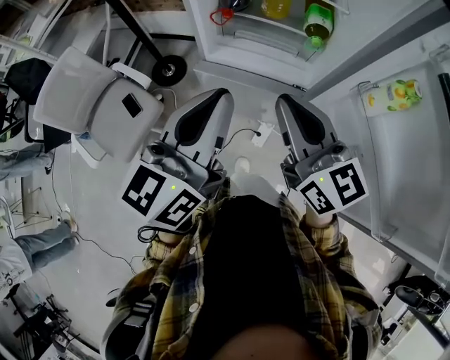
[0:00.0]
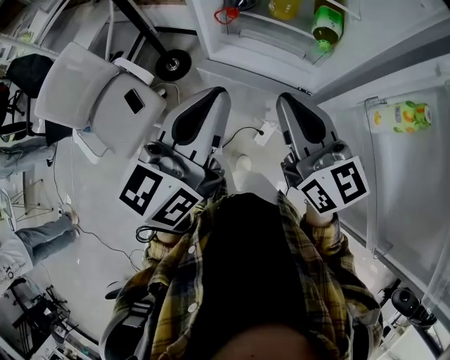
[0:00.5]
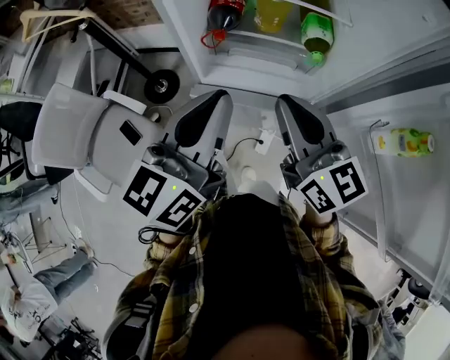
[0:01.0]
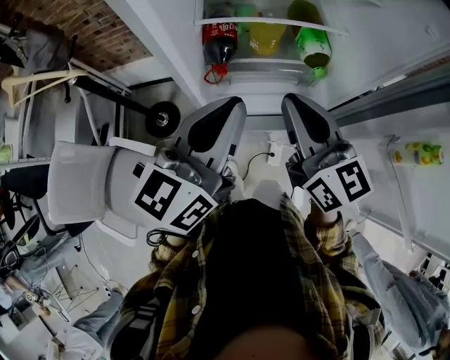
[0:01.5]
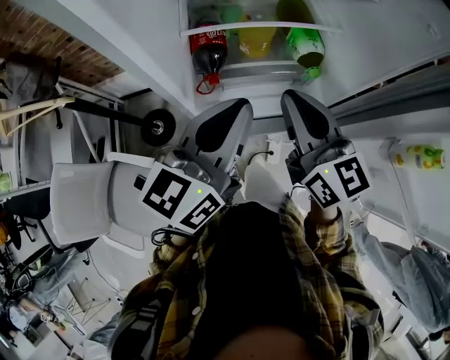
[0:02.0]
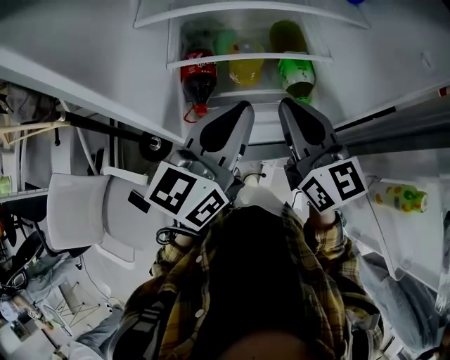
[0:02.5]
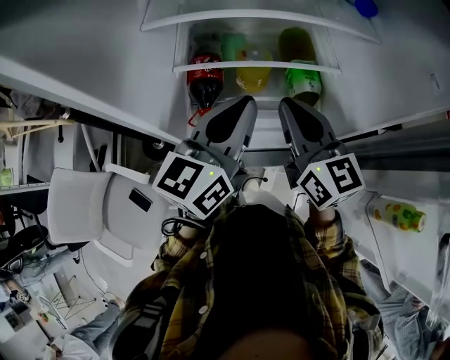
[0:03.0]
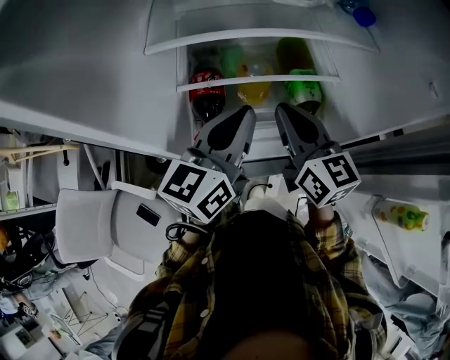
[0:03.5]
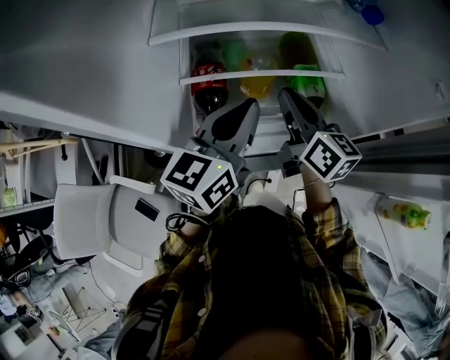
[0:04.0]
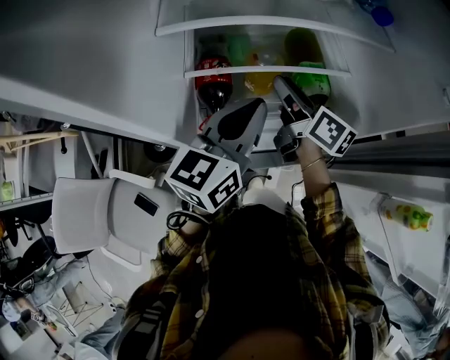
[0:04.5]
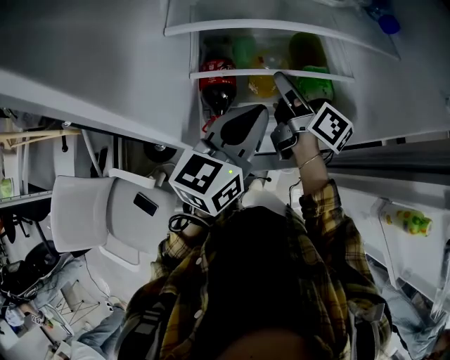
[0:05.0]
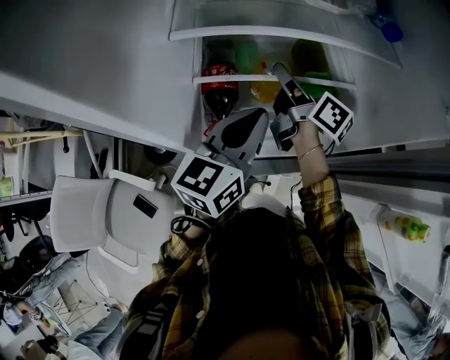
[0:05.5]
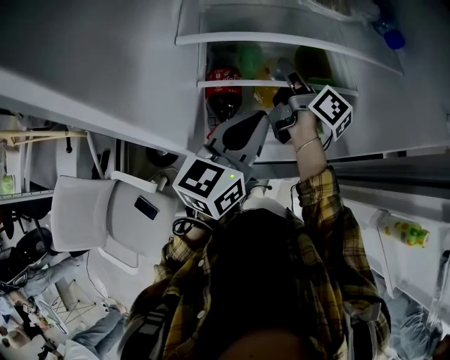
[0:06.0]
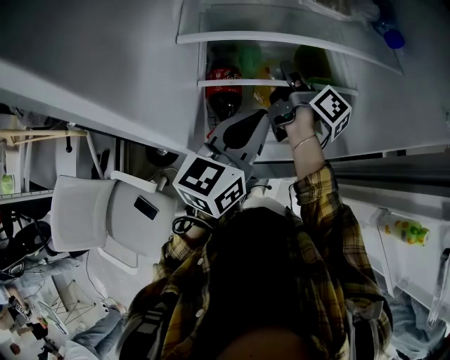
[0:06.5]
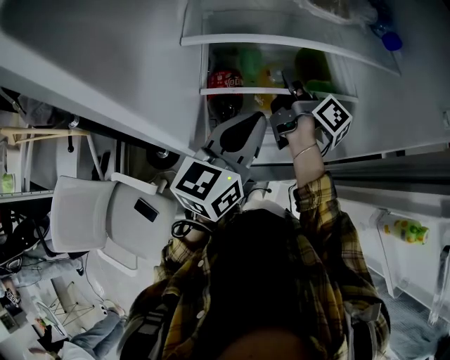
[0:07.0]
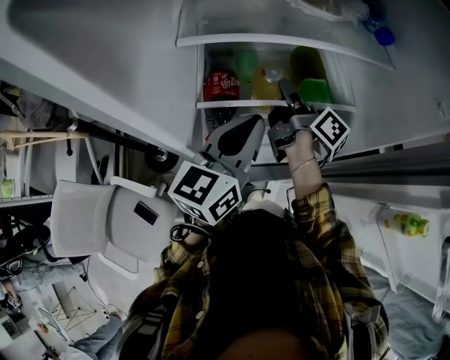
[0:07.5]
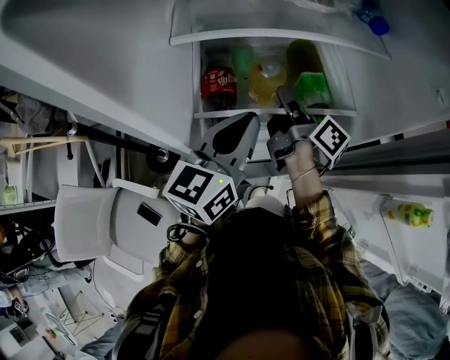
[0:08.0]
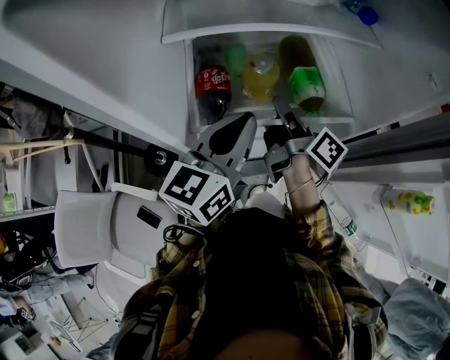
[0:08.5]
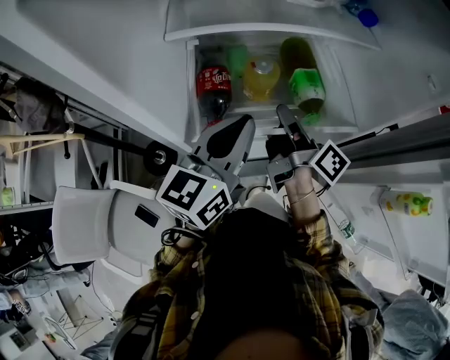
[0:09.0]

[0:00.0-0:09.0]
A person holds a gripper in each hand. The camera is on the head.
0:00.0 to 0:02.0: The right gripper ends up roughly 25 cm from where it was, and rotates approximately 30 degrees; the left gripper moves roughly 25 cm, and changes its angle by about 30 degrees.
0:02.0 to 0:04.5: The right gripper goes about 20 cm forward and downward, rotates some 40 degrees, and opens. Meanwhile the left gripper travels forward by some 10 cm.
0:04.5 to 0:07.0: The right gripper moves forward, approximately 5 cm, rotates roughly 30 degrees, and closes its fingers.
0:07.0 to 0:09.0: The right gripper heads backward, covering some 15 cm.

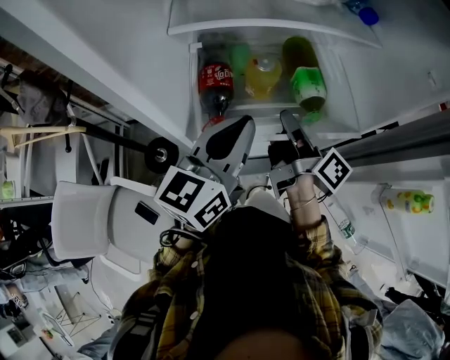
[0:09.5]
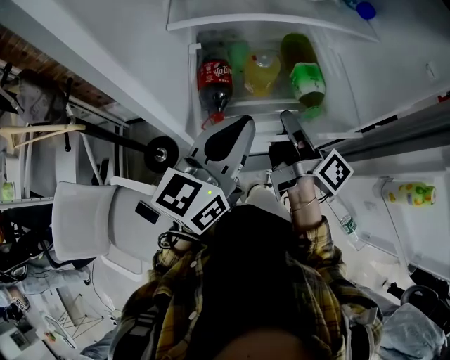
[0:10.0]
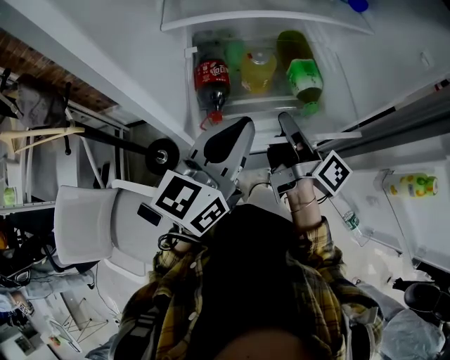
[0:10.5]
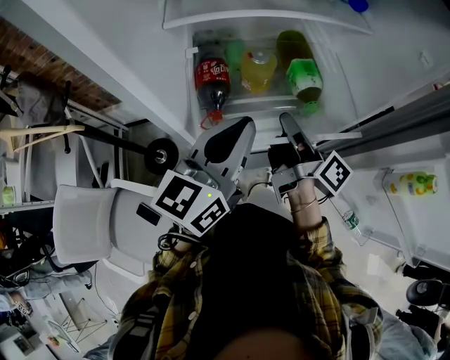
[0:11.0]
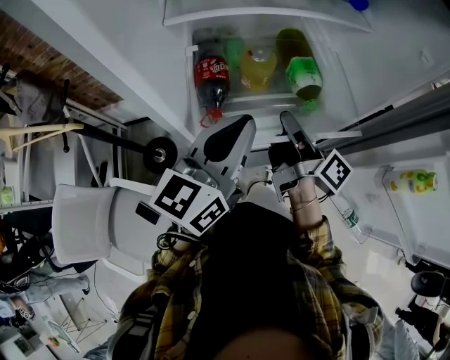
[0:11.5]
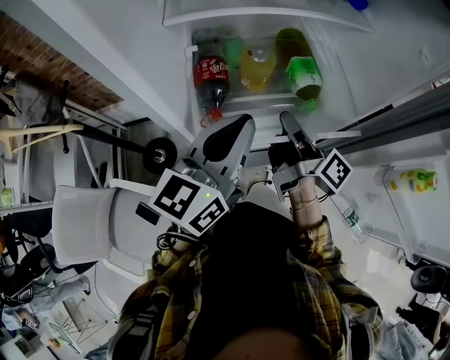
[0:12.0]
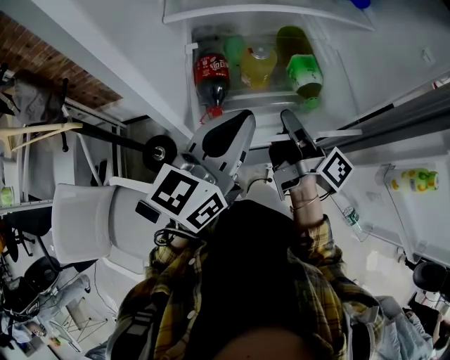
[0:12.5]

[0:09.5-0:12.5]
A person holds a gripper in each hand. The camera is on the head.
0:09.5 to 0:11.0: The grippers move only a little.
0:11.0 to 0:12.5: Both grippers stay put.

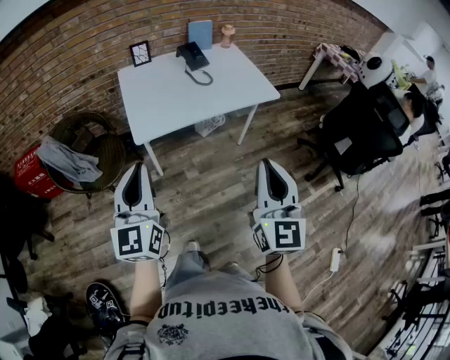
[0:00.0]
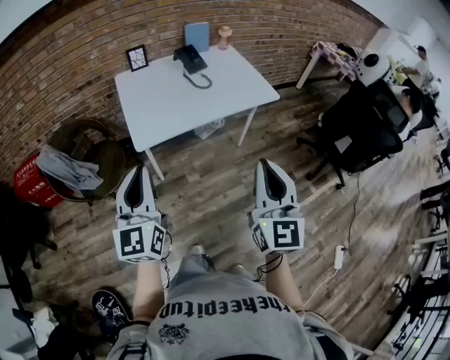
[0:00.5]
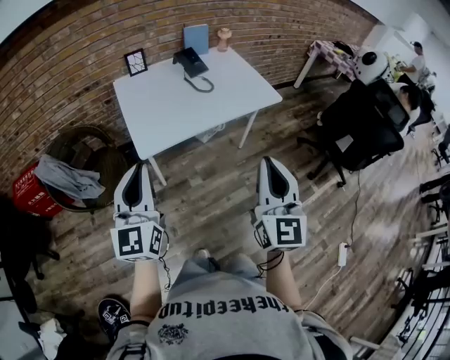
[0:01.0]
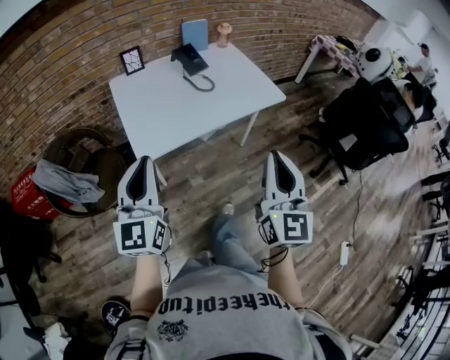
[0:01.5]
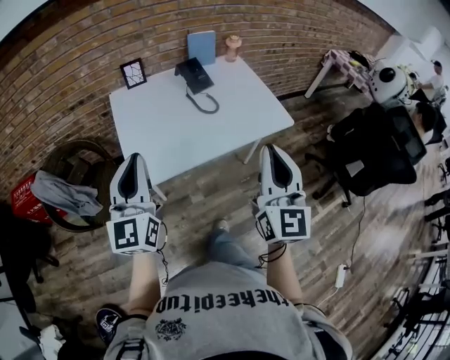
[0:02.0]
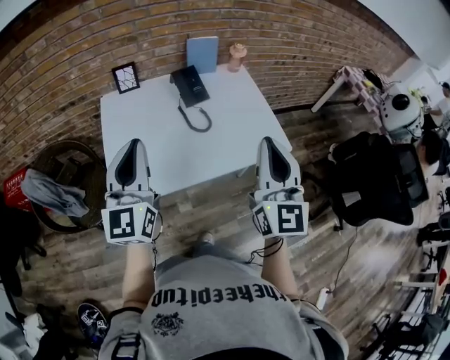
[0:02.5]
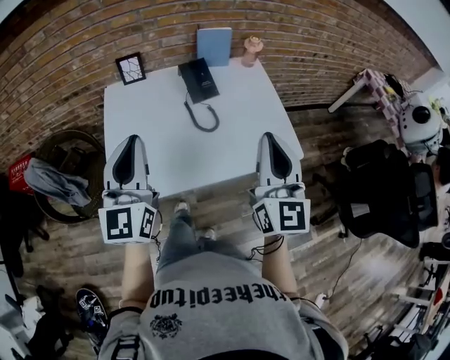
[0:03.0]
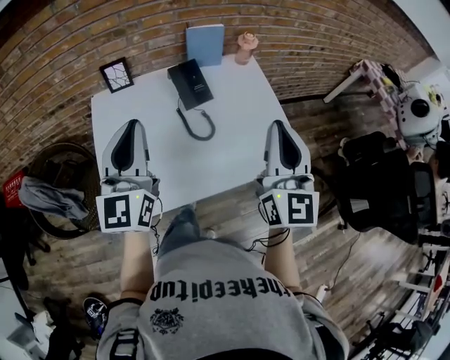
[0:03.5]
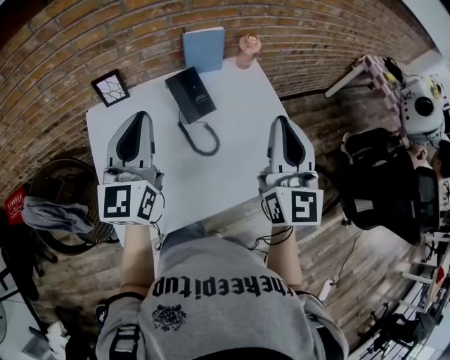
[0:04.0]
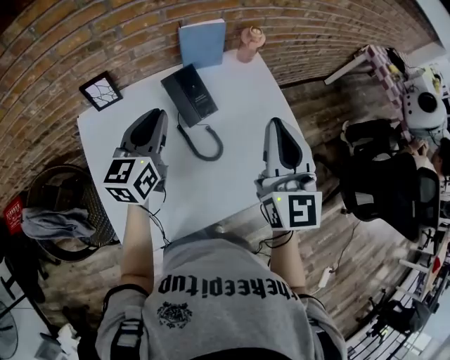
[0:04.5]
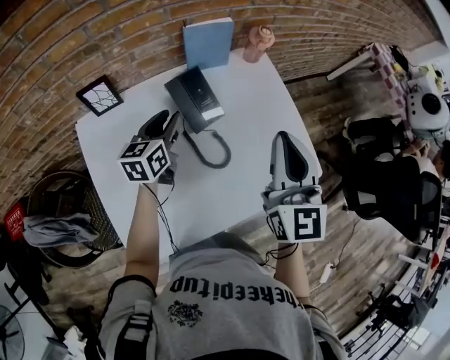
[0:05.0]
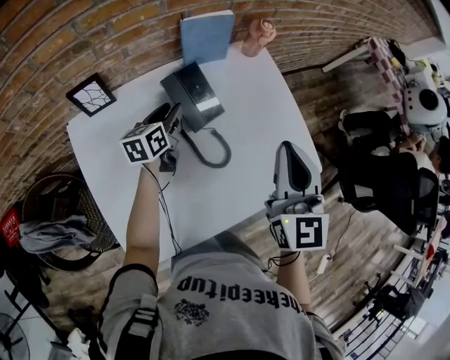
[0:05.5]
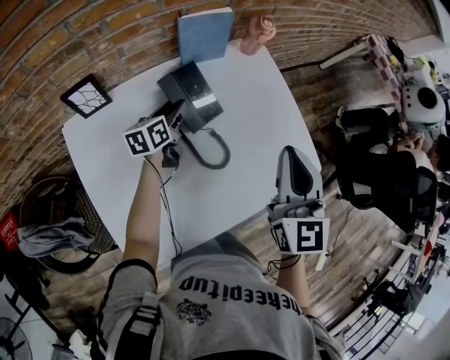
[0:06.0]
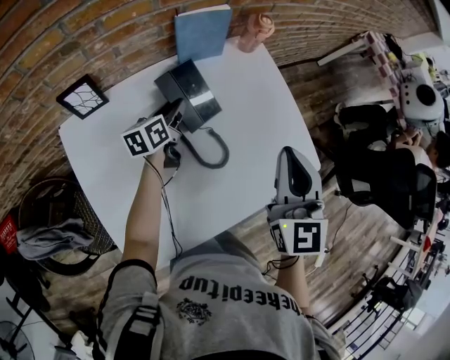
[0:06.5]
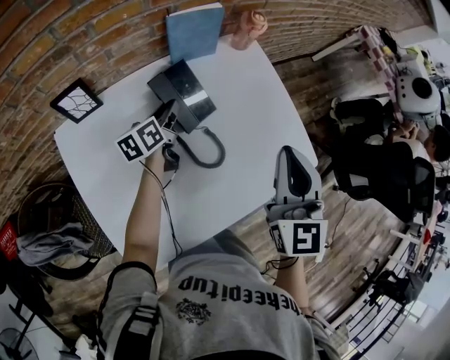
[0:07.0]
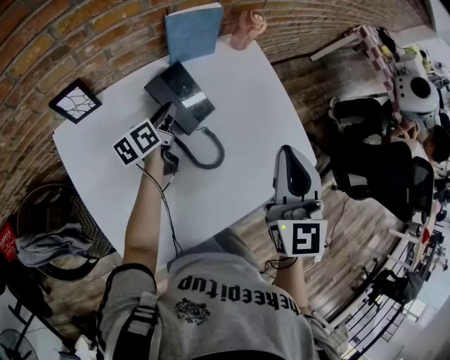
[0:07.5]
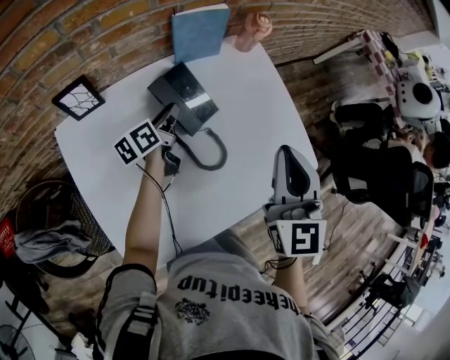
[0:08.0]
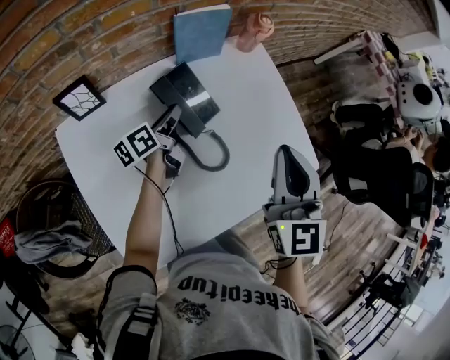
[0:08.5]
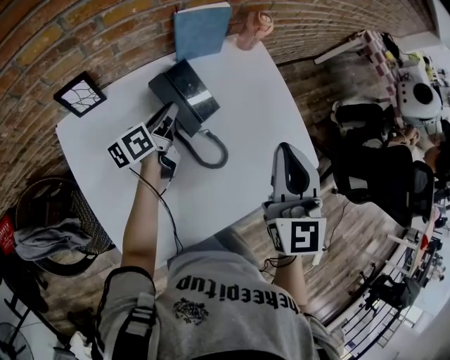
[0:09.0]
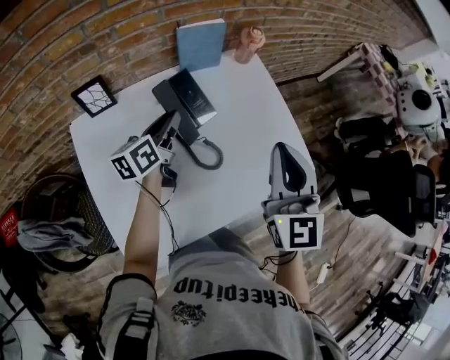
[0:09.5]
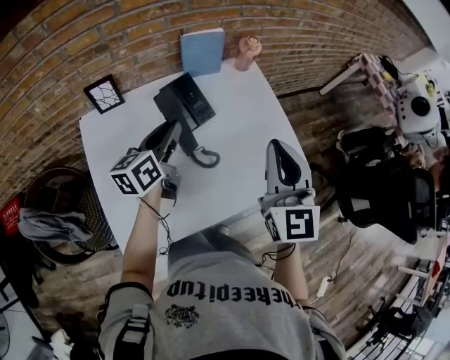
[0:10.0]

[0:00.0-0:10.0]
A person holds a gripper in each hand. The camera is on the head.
0:00.0 to 0:02.0: Both grippers move forward, some 25 cm.
0:02.0 to 0:04.0: Both grippers move forward, approximately 35 cm.
0:04.0 to 0:06.0: The left gripper travels downward and forward by about 40 cm, angles its fingers downward, by approximately 30 degrees, and opens up. The right gripper goes approximately 10 cm downward and forward, and turns by some 20 degrees.
0:06.0 to 0:08.0: The left gripper swivels some 20 degrees.
0:08.0 to 0:10.0: The left gripper goes roughly 20 cm upward and backward, and turns by some 30 degrees. Meanwhile the right gripper moves backward, some 5 cm.

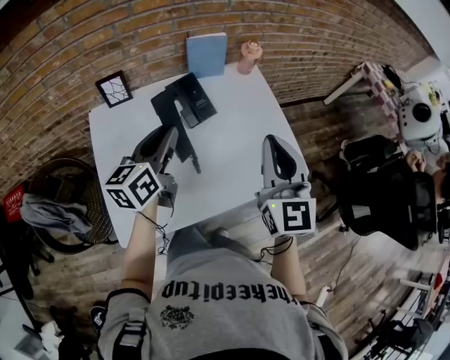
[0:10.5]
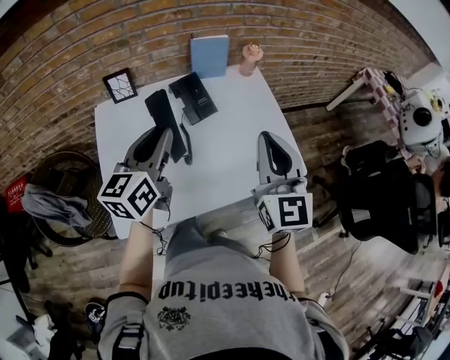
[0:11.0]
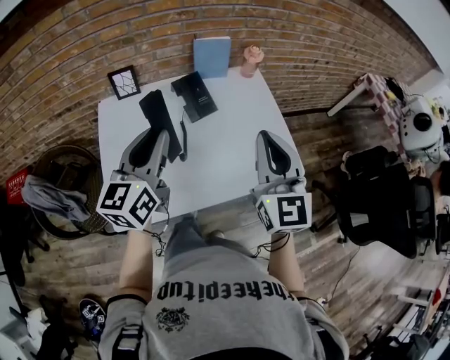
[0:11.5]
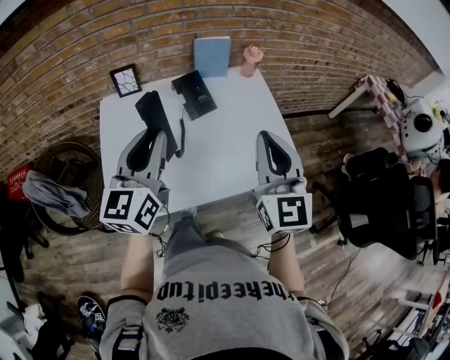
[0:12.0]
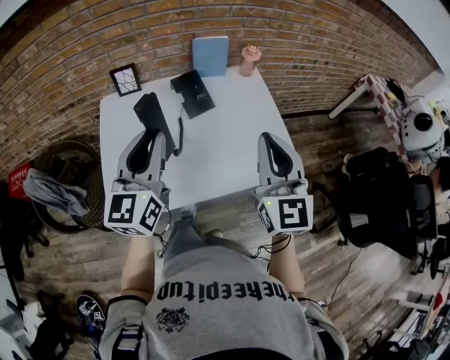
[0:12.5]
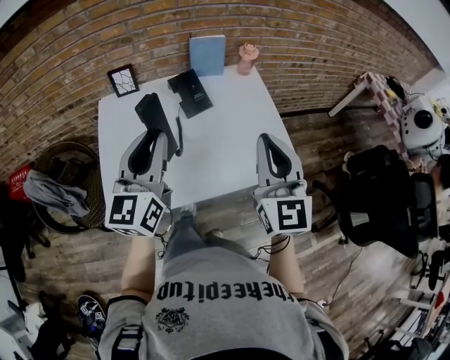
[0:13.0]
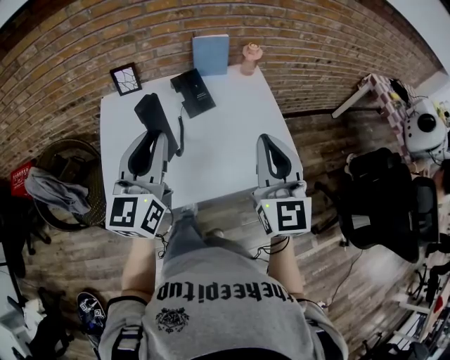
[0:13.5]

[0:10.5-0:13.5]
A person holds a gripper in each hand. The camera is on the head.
0:10.5 to 0:12.0: The right gripper shifts about 5 cm backward, while the left gripper goes roughly 15 cm backward and upward, and turns by about 30 degrees.
0:12.0 to 0:13.5: The grippers move only a little.

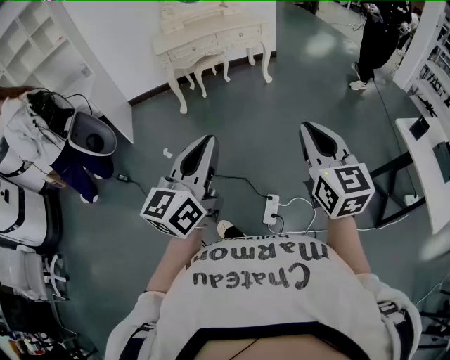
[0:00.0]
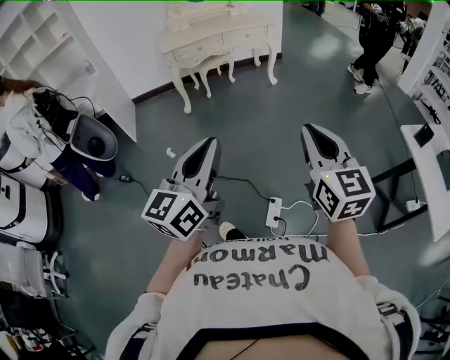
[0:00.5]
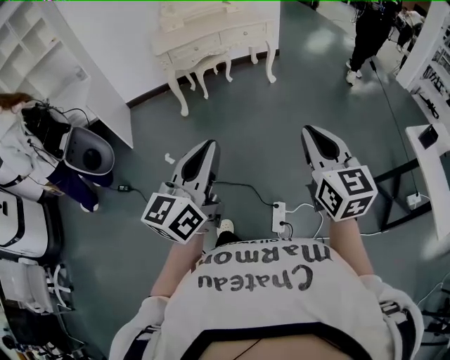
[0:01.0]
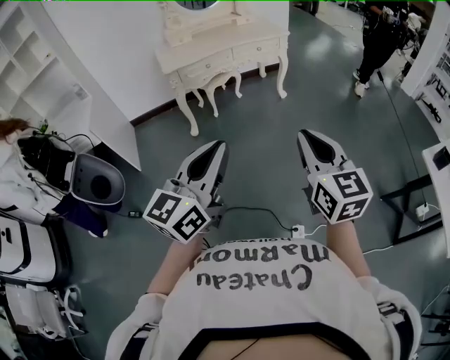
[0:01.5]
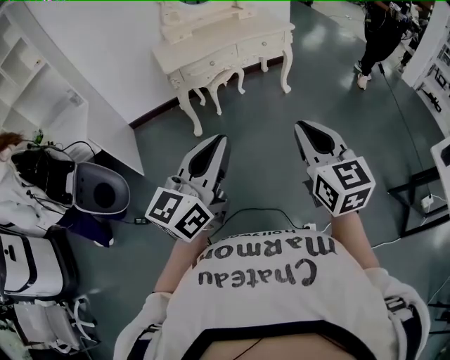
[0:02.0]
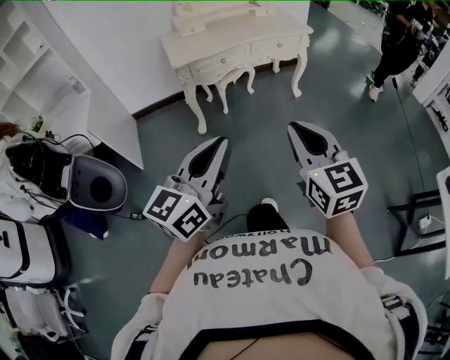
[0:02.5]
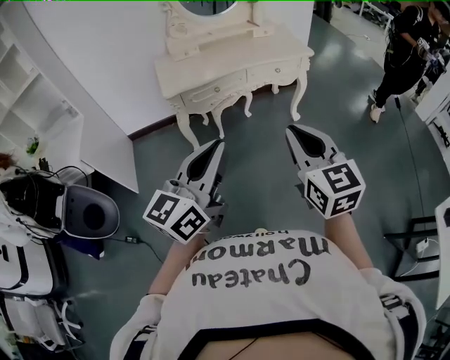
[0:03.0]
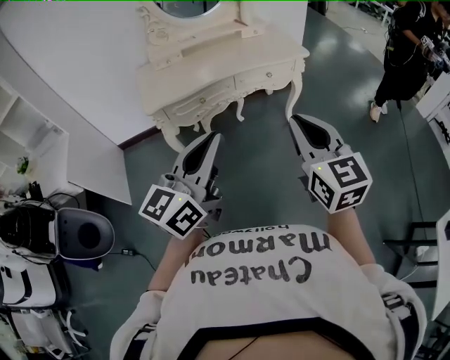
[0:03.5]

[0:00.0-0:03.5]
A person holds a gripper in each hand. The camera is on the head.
0:00.0 to 0:02.0: Both grippers travel together forward and to the left, approximately 40 cm.
0:02.0 to 0:03.5: The grippers both shift forward by some 40 cm.
